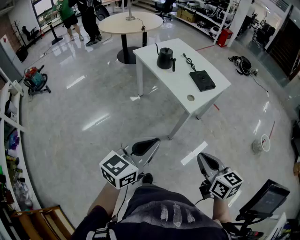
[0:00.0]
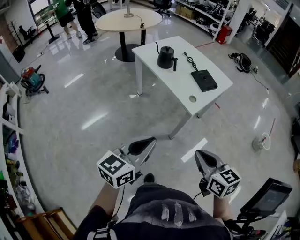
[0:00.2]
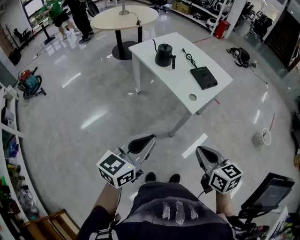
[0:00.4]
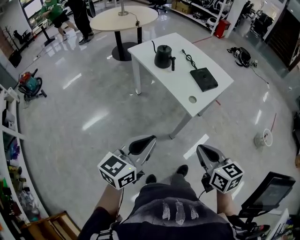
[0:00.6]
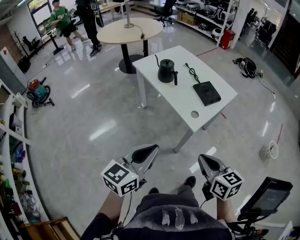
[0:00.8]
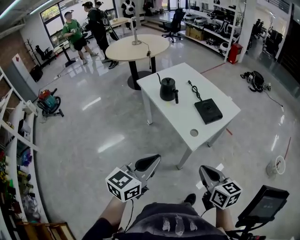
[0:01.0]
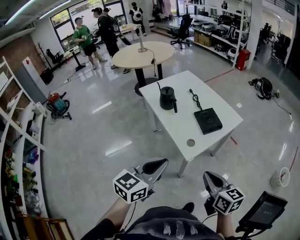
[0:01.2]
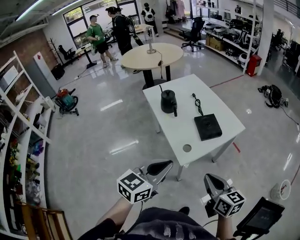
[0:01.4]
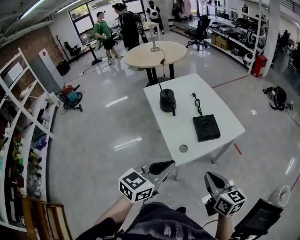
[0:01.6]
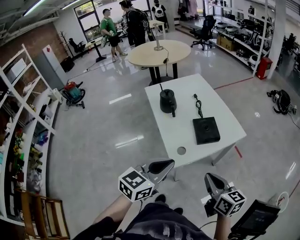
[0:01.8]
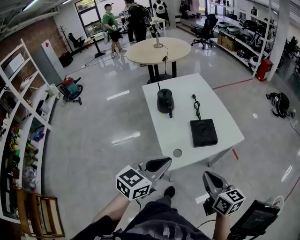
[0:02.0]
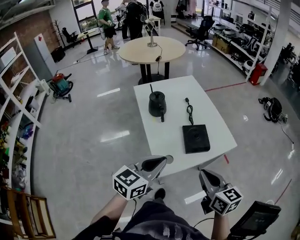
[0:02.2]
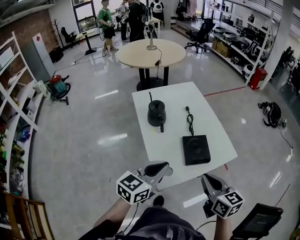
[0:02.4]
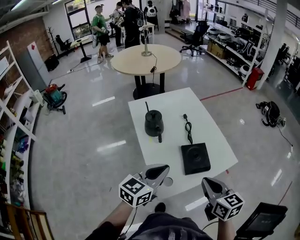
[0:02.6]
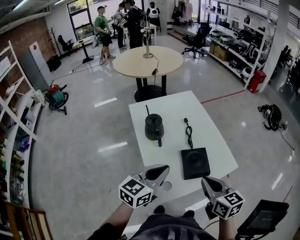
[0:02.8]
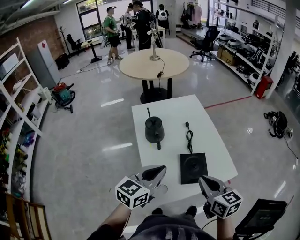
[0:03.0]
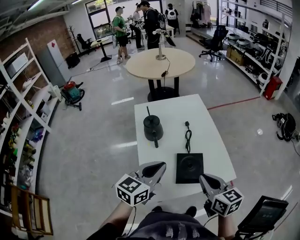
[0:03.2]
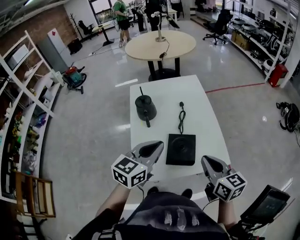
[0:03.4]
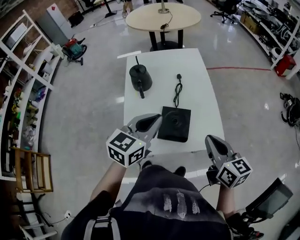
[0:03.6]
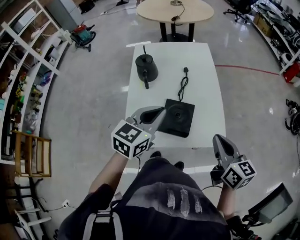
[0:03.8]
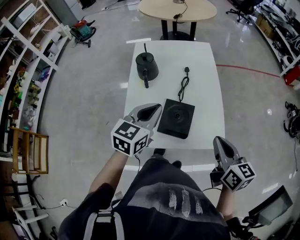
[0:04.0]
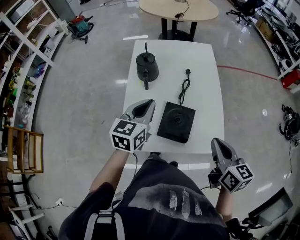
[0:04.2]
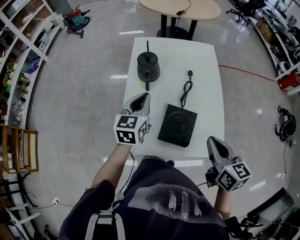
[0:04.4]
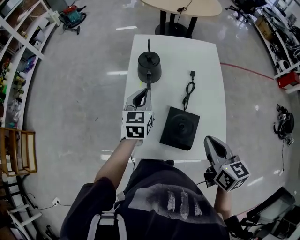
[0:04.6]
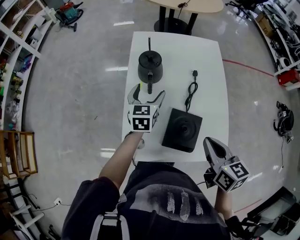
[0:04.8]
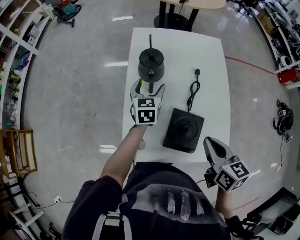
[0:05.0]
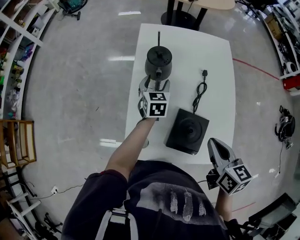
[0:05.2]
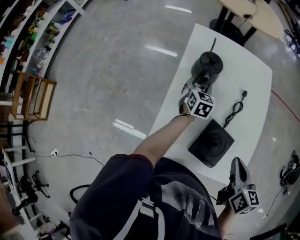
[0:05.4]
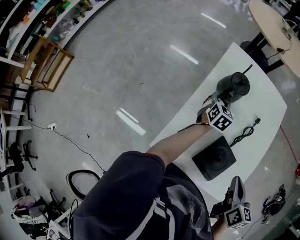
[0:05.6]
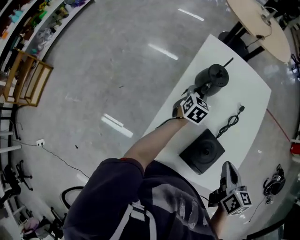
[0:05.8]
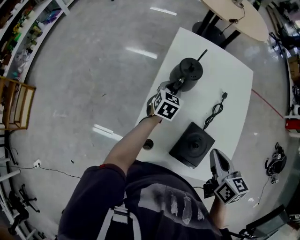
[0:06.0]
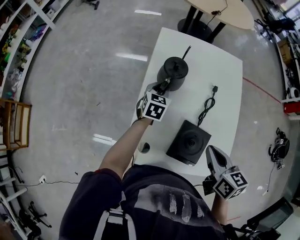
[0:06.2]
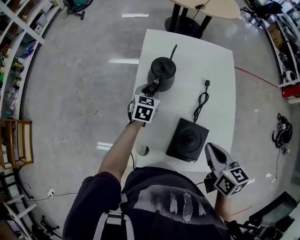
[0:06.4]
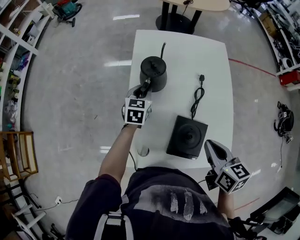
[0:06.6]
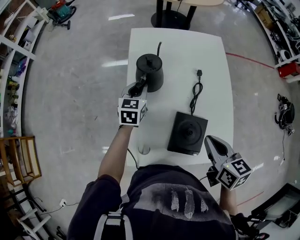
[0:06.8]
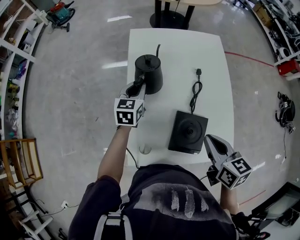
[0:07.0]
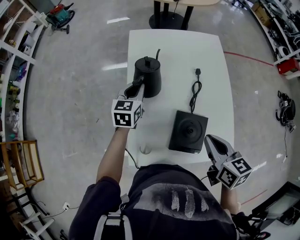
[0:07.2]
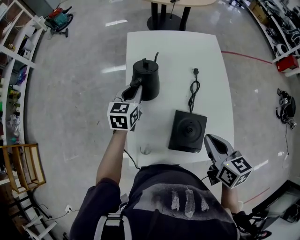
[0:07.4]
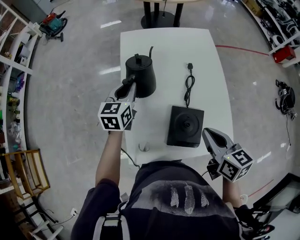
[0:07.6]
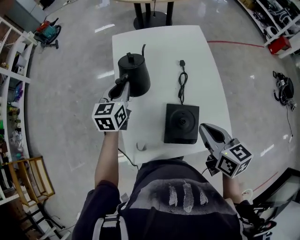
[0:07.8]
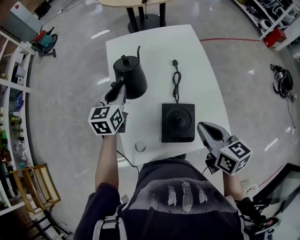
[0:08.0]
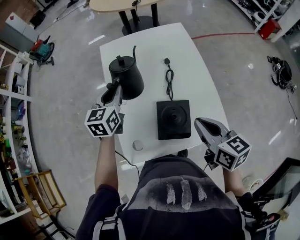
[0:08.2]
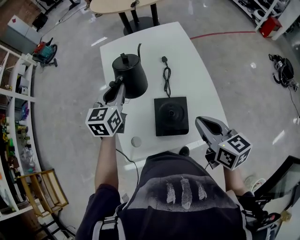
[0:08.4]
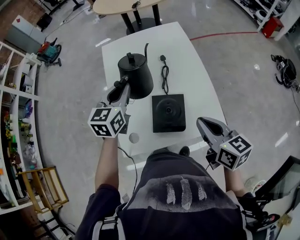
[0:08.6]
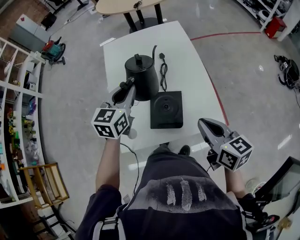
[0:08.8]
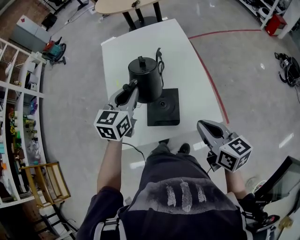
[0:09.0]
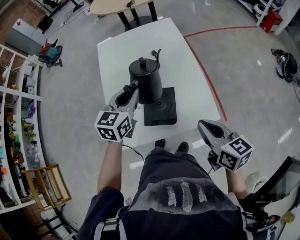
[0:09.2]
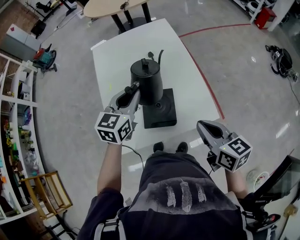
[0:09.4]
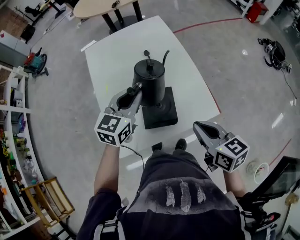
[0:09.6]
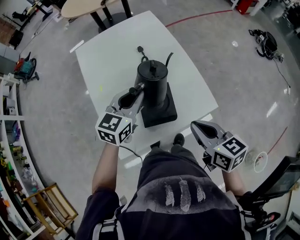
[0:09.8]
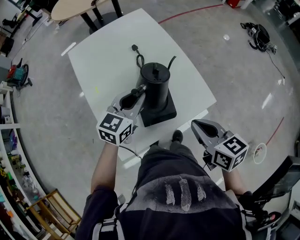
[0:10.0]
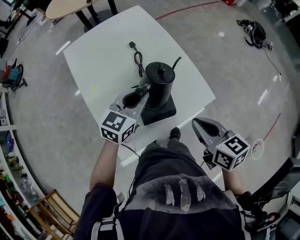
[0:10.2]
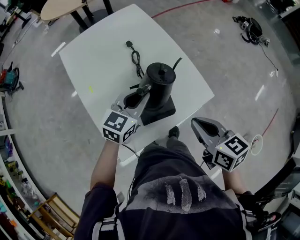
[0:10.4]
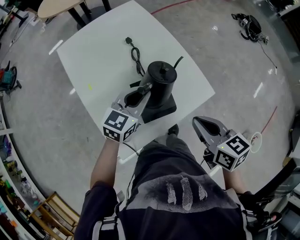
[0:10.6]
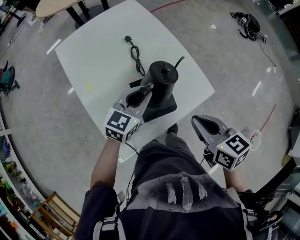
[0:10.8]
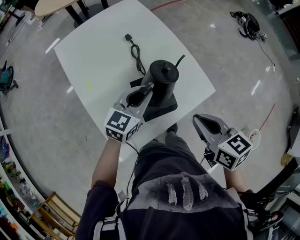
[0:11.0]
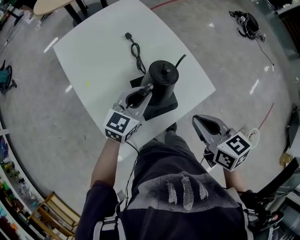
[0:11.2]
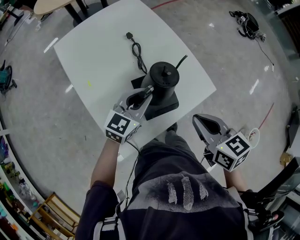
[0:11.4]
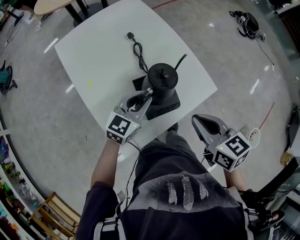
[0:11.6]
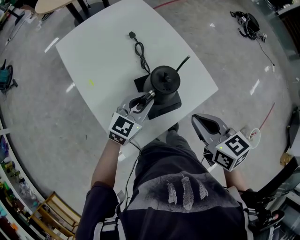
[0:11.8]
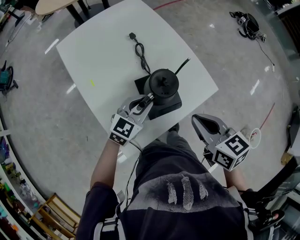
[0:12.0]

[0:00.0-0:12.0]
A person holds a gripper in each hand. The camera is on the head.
0.0 to 1.6 s: The grippers both shift forward and to the right by about 35 cm.
1.6 to 3.0 s: The grippers both shift forward by roughly 25 cm.
3.0 to 4.4 s: The left gripper moves roughly 15 cm, and turns by some 40 degrees. The right gripper shifts by some 15 cm.
4.4 to 6.0 s: The left gripper goes approximately 20 cm forward and downward, and opens, then closes once more; the right gripper travels forward and to the left by roughly 15 cm.
6.0 to 7.6 s: The left gripper moves upward, about 10 cm.
7.6 to 9.0 s: The left gripper heads to the right, backward and upward, covering some 25 cm, while the right gripper heads backward and to the right, covering about 15 cm.
9.0 to 10.4 s: The left gripper is displaced downward by approximately 10 cm, and swivels some 40 degrees.
10.4 to 12.0 s: The right gripper shifts by some 5 cm, while the left gripper travels backward and downward by approximately 10 cm.

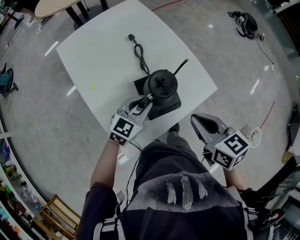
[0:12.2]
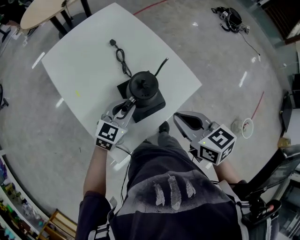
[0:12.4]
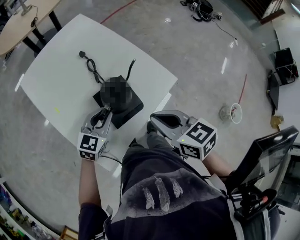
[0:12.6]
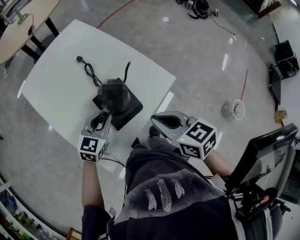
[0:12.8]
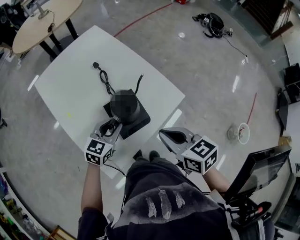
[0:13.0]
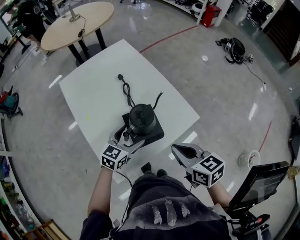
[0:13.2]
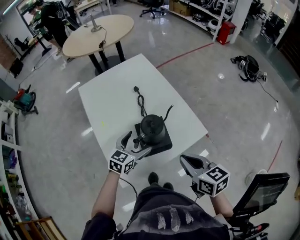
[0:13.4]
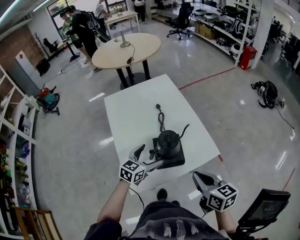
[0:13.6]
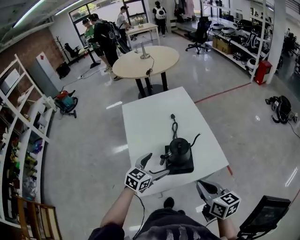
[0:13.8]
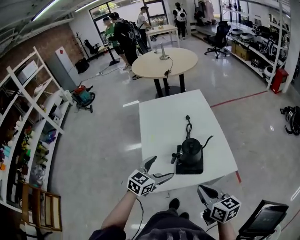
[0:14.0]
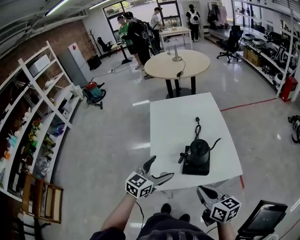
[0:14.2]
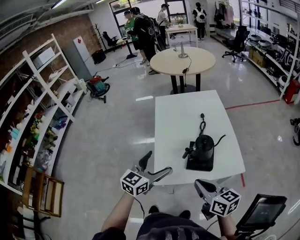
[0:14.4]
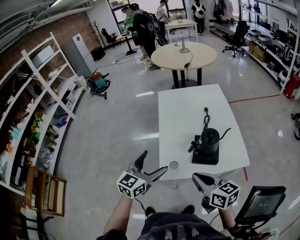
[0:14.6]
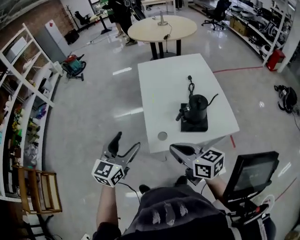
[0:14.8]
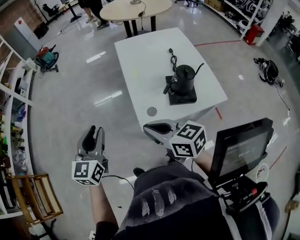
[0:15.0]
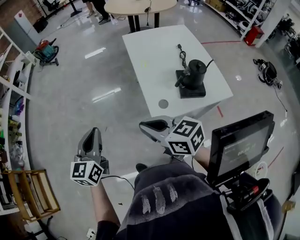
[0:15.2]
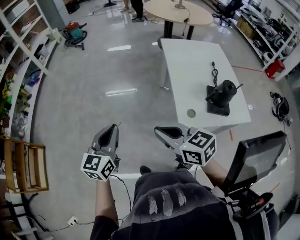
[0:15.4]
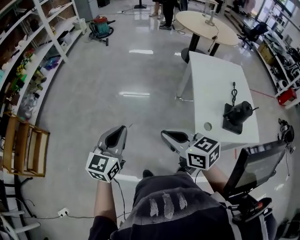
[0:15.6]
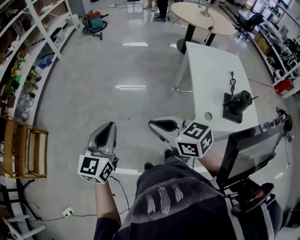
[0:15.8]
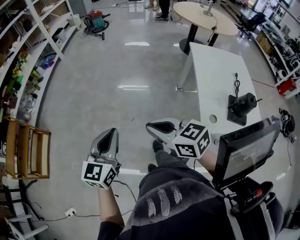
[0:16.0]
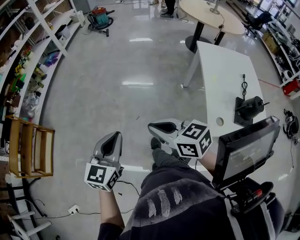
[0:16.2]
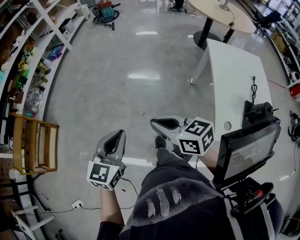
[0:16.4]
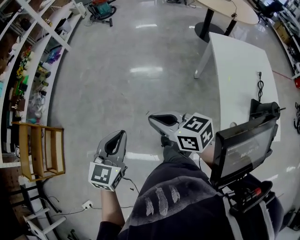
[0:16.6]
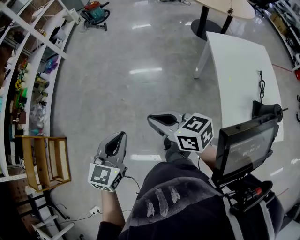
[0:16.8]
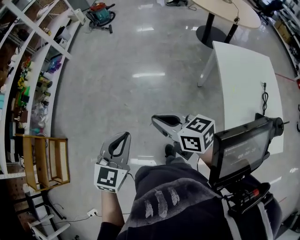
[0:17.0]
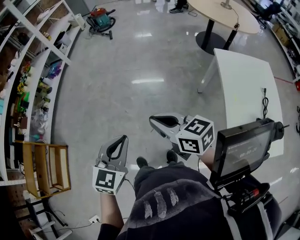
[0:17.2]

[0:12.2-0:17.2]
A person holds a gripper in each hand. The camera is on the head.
12.2 to 13.8 s: The left gripper travels upward and backward by about 10 cm, rotates about 20 degrees, and opens up. The right gripper shifts some 5 cm backward.
13.8 to 15.6 s: The pair of grippers is taken some 60 cm. The right gripper rotates about 40 degrees. The left gripper swivels approximately 40 degrees, and closes its fingers.
15.6 to 17.2 s: The two grippers go roughly 25 cm forward. The left gripper swivels roughly 20 degrees.

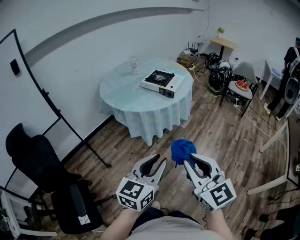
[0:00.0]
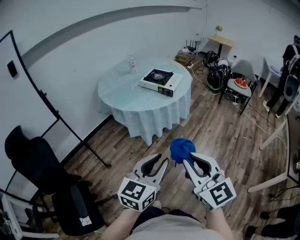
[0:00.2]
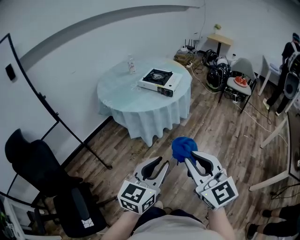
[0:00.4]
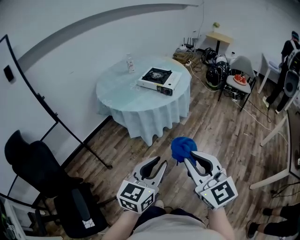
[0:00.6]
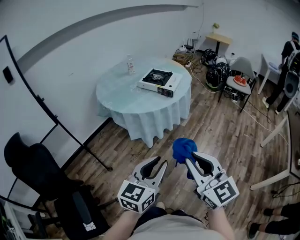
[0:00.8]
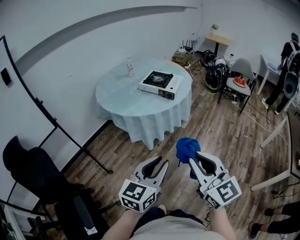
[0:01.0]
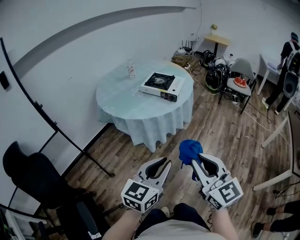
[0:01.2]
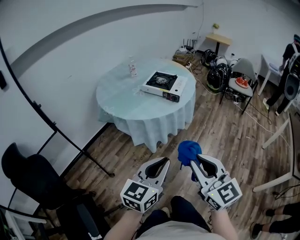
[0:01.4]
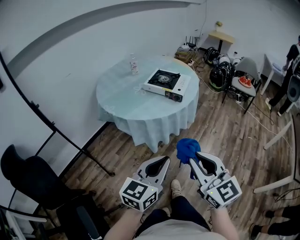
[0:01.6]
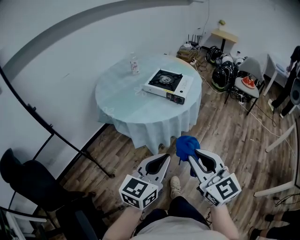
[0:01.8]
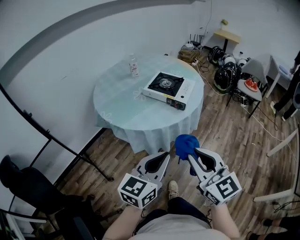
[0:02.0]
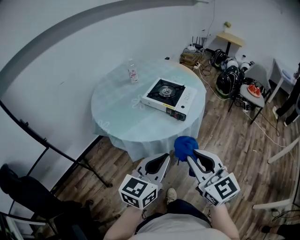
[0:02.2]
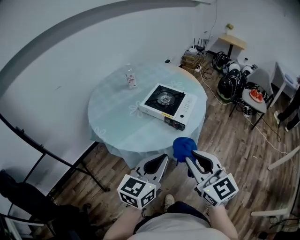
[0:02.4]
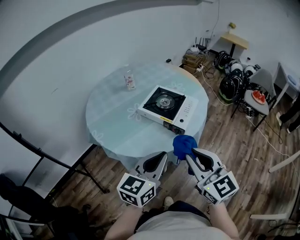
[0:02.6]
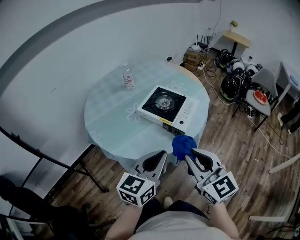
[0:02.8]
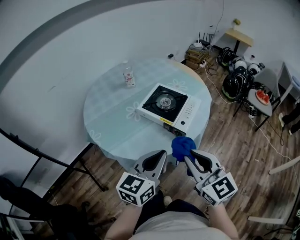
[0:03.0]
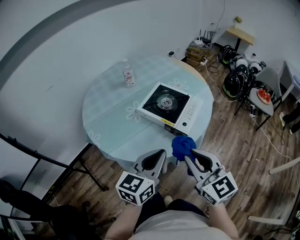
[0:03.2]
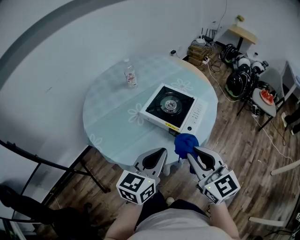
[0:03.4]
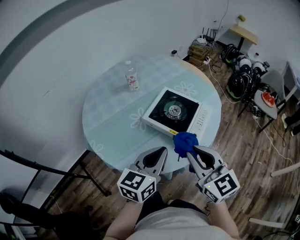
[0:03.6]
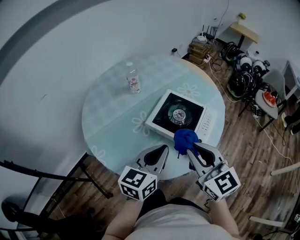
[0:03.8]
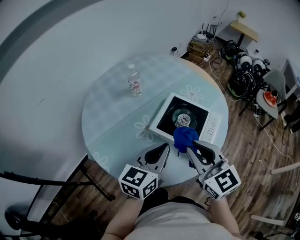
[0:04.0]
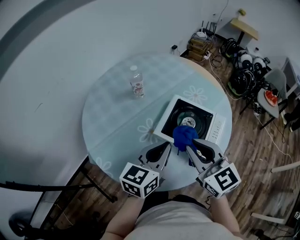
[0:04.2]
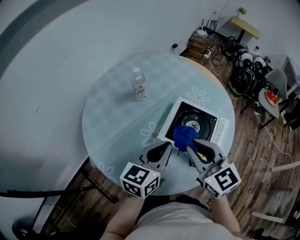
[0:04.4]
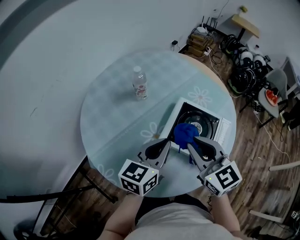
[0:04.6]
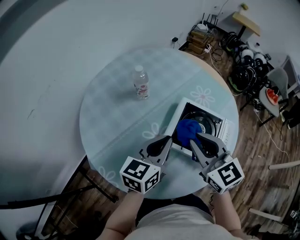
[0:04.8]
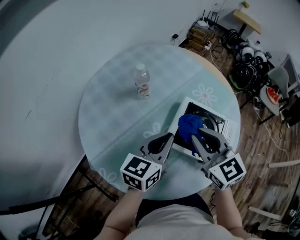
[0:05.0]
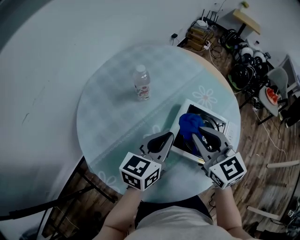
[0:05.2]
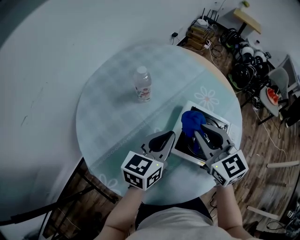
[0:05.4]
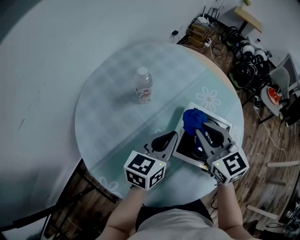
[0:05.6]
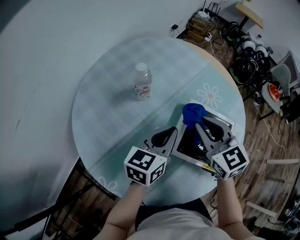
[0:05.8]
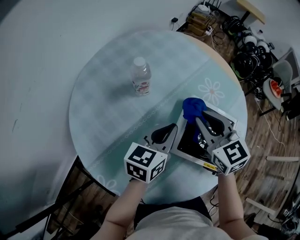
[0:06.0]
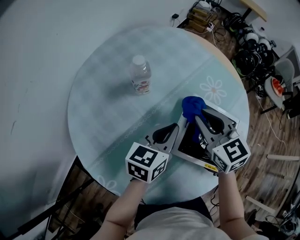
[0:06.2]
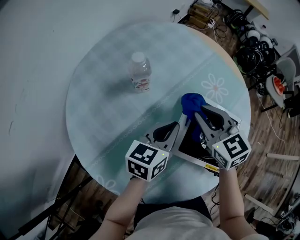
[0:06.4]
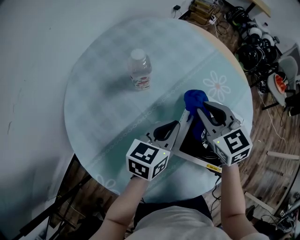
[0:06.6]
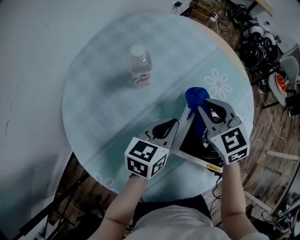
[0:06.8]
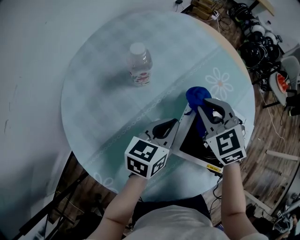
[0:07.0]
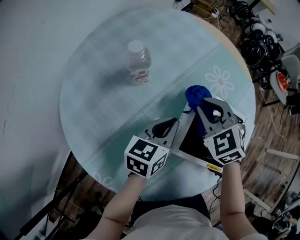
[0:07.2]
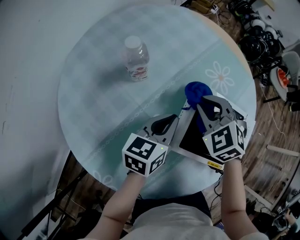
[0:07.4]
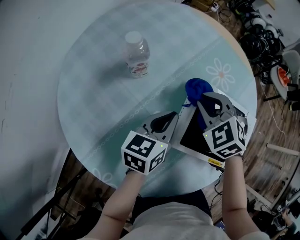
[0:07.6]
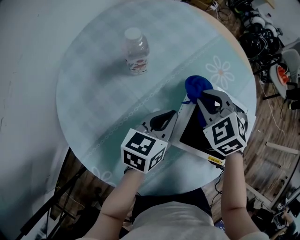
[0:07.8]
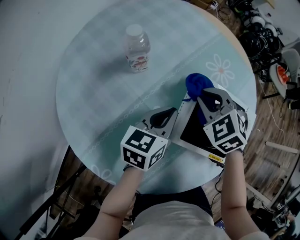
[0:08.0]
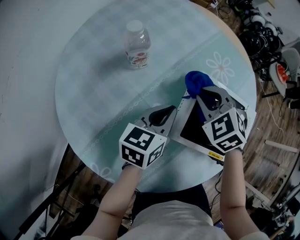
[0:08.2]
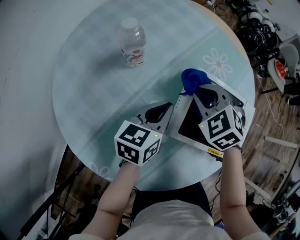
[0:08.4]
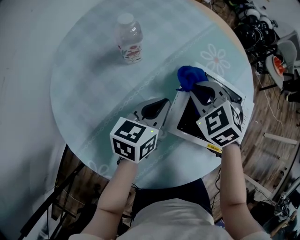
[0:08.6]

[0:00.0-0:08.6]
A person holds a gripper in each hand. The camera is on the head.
0.0 to 1.4 s: The left gripper moves forward and to the left, about 10 cm. Meanwhile the right gripper heads forward, covering about 10 cm.
1.4 to 2.8 s: The two grippers go some 35 cm forward.
2.8 to 4.4 s: The grippers both shift forward and to the left by some 30 cm.
4.4 to 5.8 s: The right gripper is displaced forward by roughly 15 cm, while the left gripper heads forward and downward, covering roughly 15 cm.
5.8 to 7.2 s: The left gripper heads downward, covering about 10 cm. The right gripper goes some 10 cm downward and forward, and turns by approximately 30 degrees.
7.2 to 8.6 s: The grippers move only a little.
